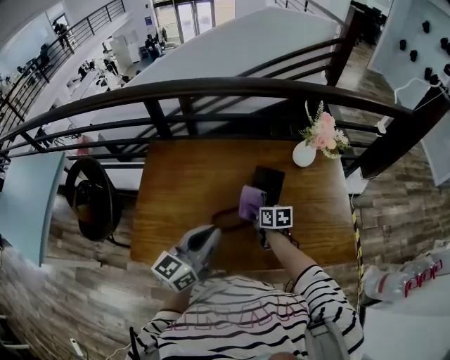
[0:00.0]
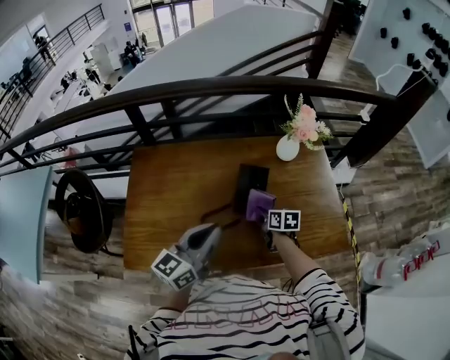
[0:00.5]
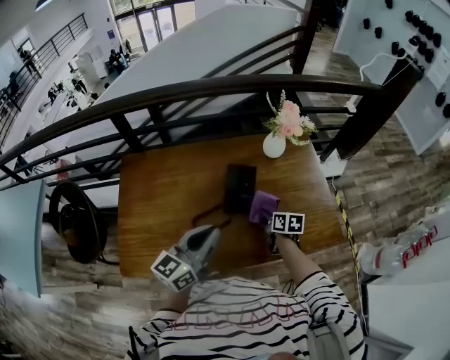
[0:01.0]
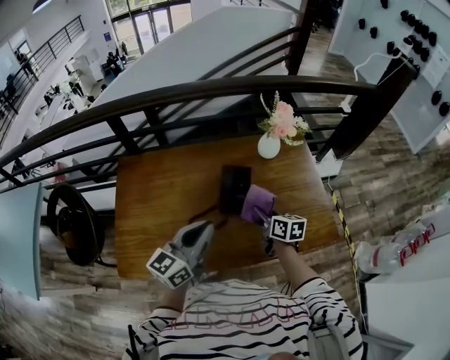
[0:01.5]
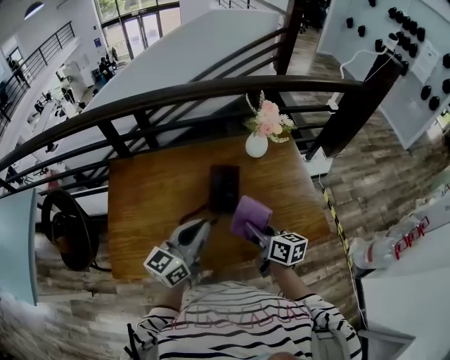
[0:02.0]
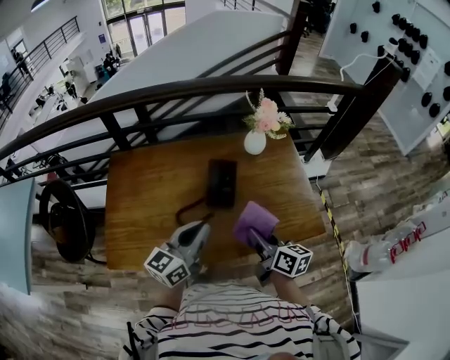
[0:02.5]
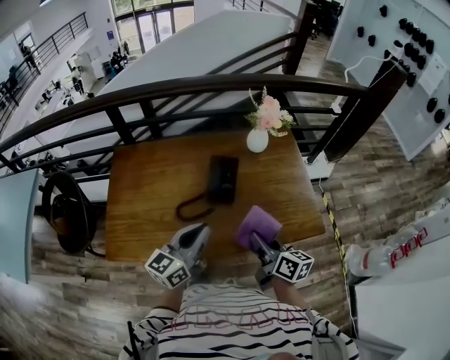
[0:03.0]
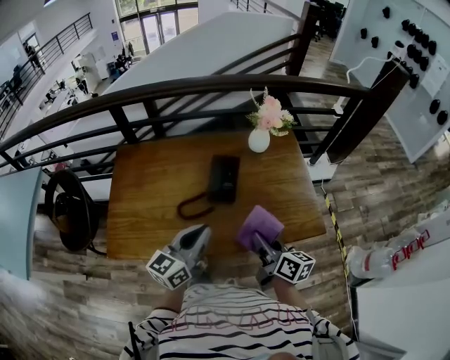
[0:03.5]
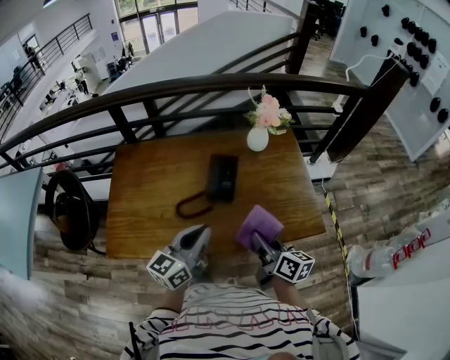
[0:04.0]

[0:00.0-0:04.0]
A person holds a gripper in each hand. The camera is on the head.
0:00.0 to 0:02.0: The left gripper moves to the right, some 10 cm; the right gripper goes some 20 cm to the right, upward and backward, and rotates some 20 degrees.
0:02.0 to 0:04.0: The right gripper shifts about 10 cm backward and to the right; the left gripper goes about 10 cm backward.

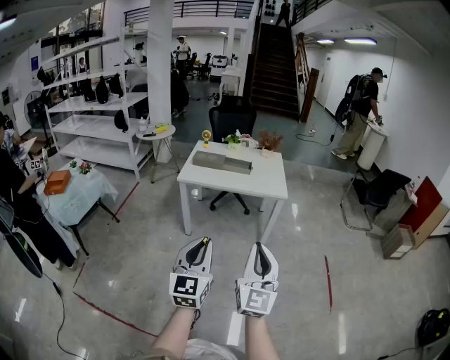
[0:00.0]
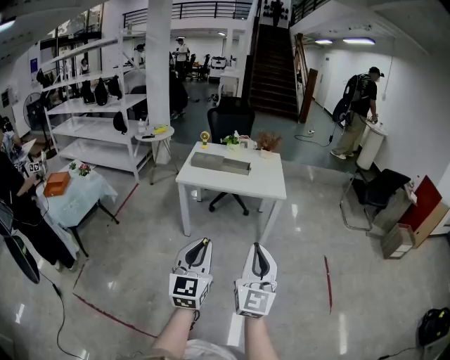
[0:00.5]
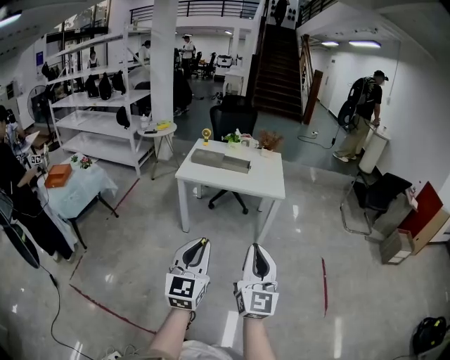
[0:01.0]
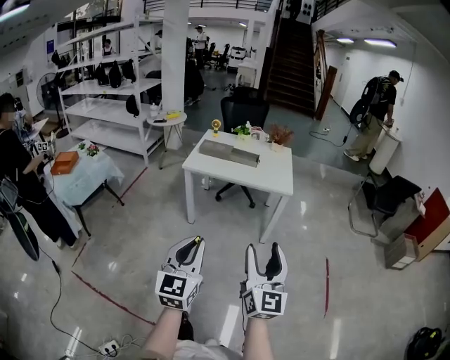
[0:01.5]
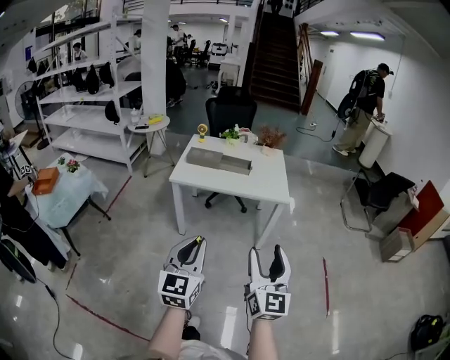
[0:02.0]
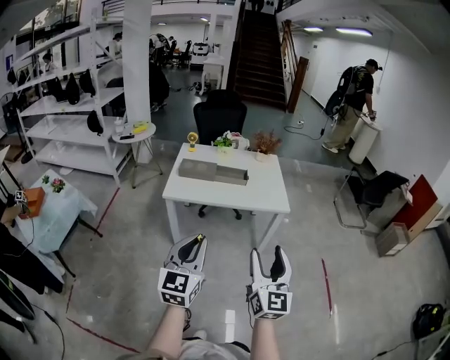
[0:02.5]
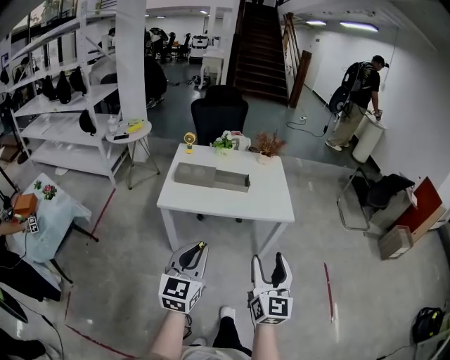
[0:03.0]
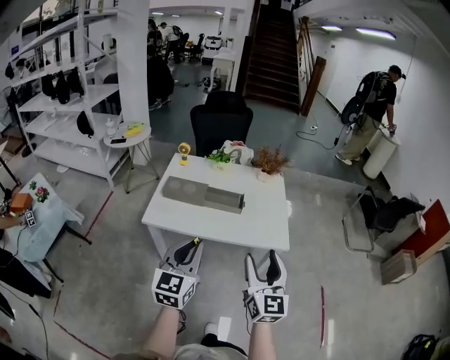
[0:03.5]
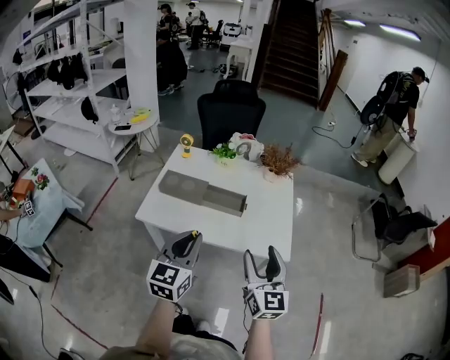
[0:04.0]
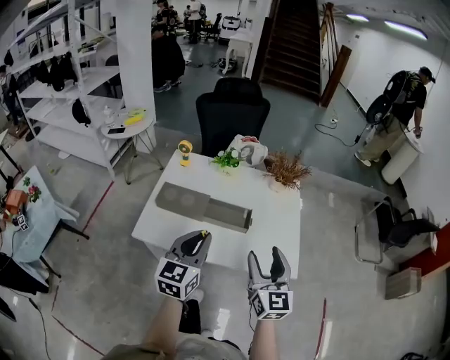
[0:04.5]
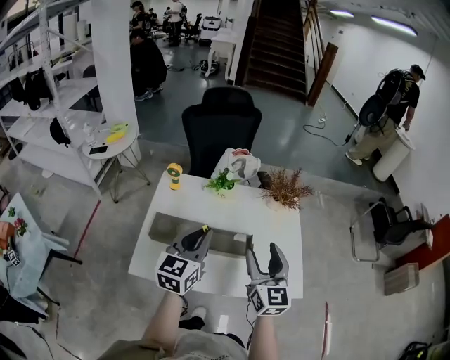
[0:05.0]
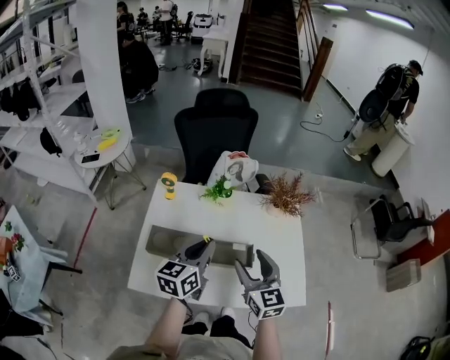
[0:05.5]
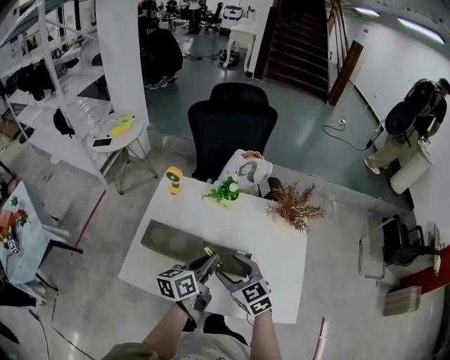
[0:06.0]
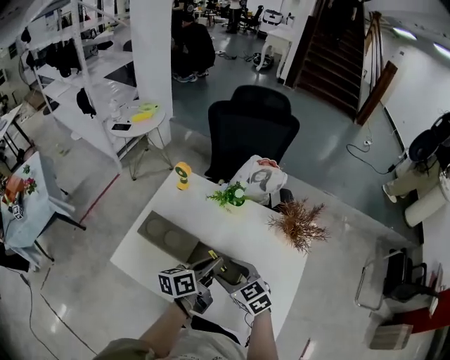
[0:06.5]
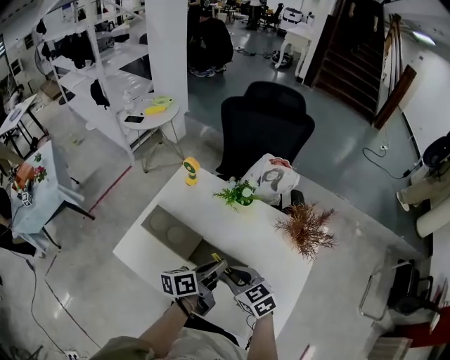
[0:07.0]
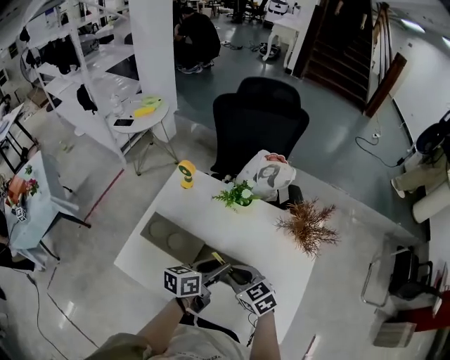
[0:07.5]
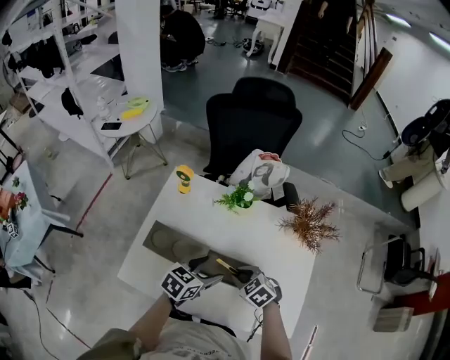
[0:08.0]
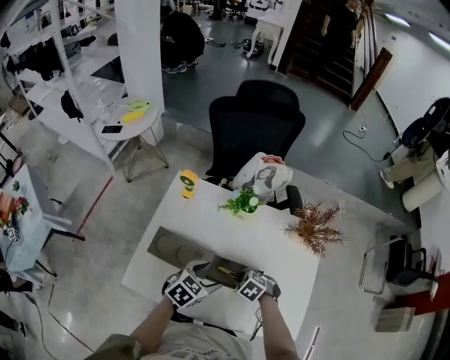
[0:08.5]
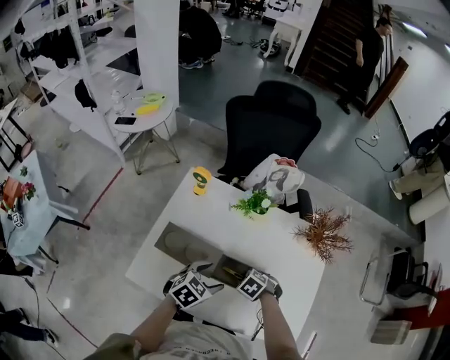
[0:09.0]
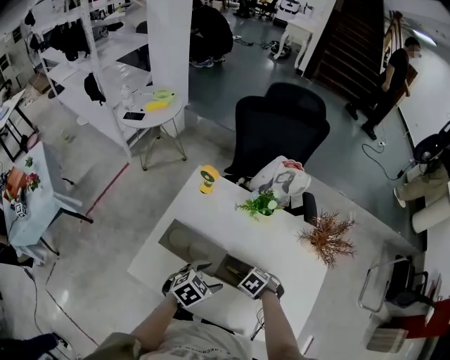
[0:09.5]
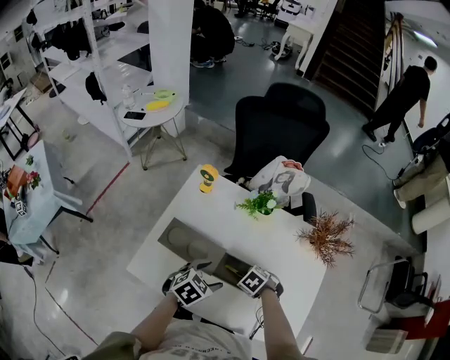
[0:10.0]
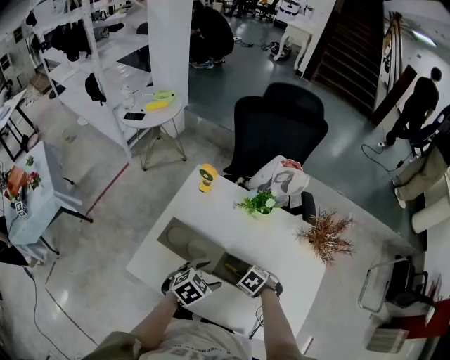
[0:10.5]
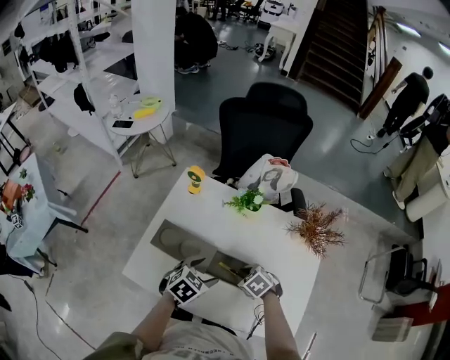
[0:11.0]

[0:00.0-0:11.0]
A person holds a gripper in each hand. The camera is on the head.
0:00.0 to 0:02.0: The two grippers go approximately 10 cm forward. The right gripper opens up.
0:02.0 to 0:03.5: The two grippers go roughly 35 cm forward.
0:03.5 to 0:05.5: Both grippers travel together forward, some 40 cm. The left gripper swivels approximately 30 degrees, while the right gripper changes its angle by about 20 degrees.
0:05.5 to 0:07.5: The two grippers go some 15 cm downward. The right gripper turns by roughly 50 degrees, and closes its fingers. Meanwhile the left gripper turns by about 30 degrees.
0:07.5 to 0:09.0: The right gripper travels downward by some 15 cm, and points its fingers some 40 degrees further downward, while the left gripper changes place by some 10 cm, rolls clockwise, seen from behind, by some 40 degrees, and opens.
0:09.0 to 0:11.0: There are only small adjustments of the grippers.

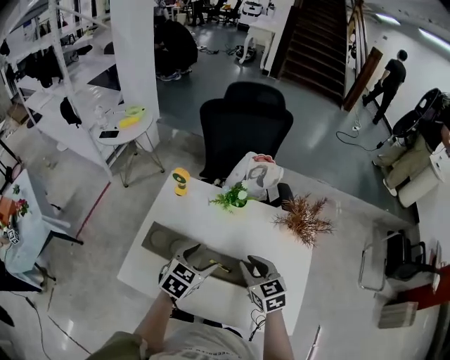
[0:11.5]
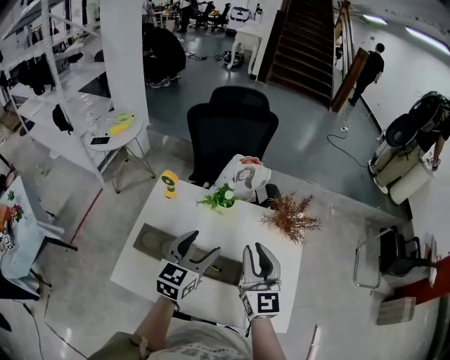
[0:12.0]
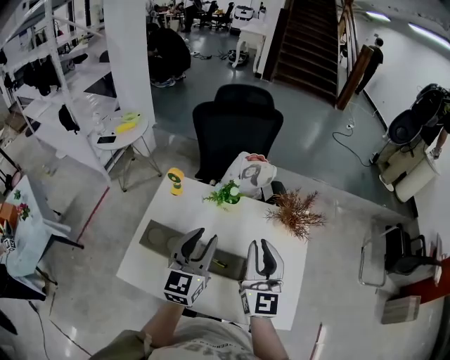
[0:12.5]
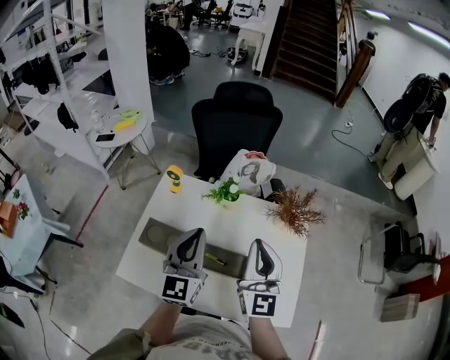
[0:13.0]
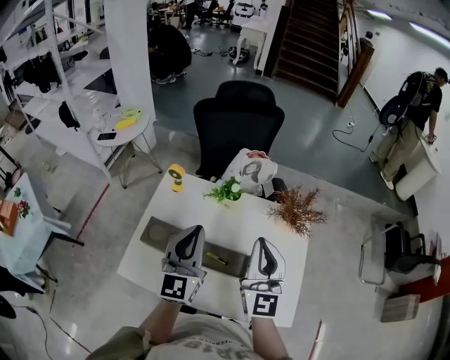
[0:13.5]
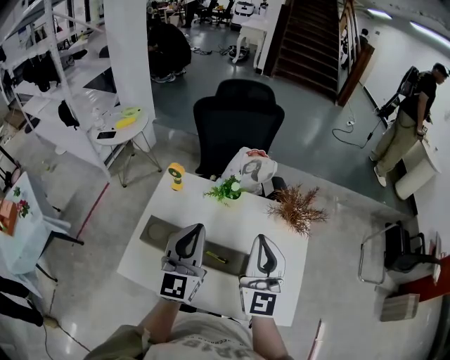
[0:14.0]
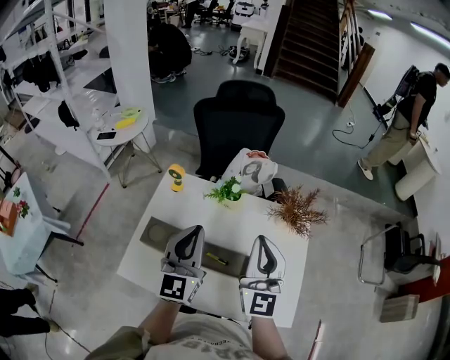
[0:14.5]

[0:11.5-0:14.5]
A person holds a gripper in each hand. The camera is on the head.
0:11.5 to 0:13.0: The two grippers go about 20 cm upward. The right gripper points its fingers approximately 40 degrees further upward, while the left gripper tips its fingers upward by approximately 40 degrees, and closes.
0:13.0 to 0:14.5: The grippers make only small movements.

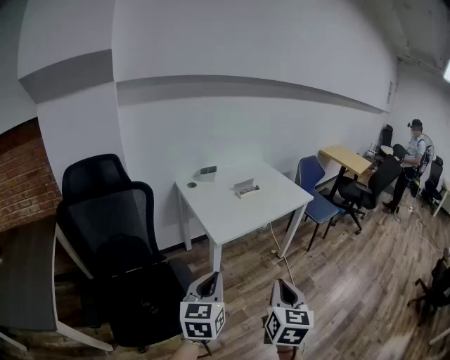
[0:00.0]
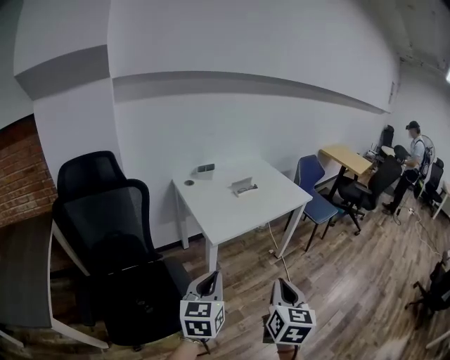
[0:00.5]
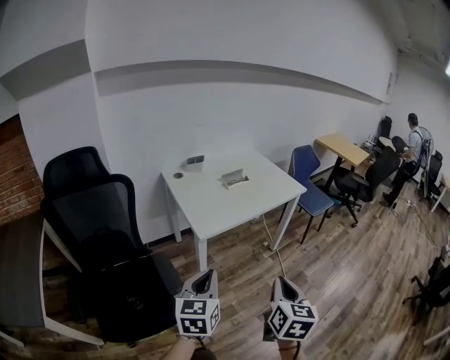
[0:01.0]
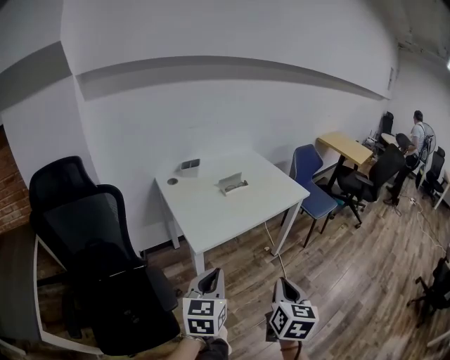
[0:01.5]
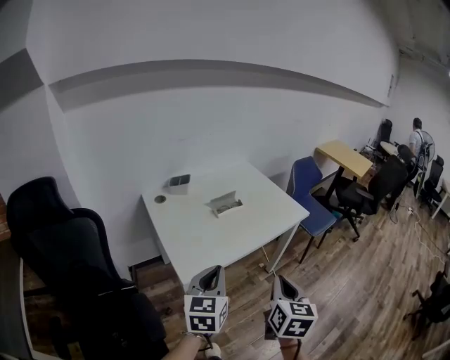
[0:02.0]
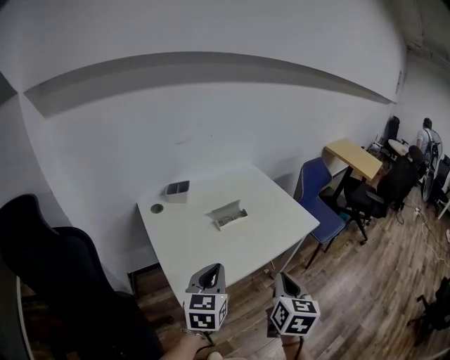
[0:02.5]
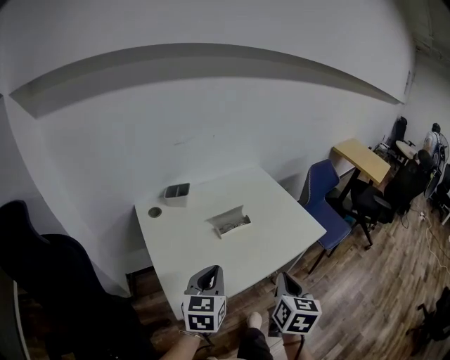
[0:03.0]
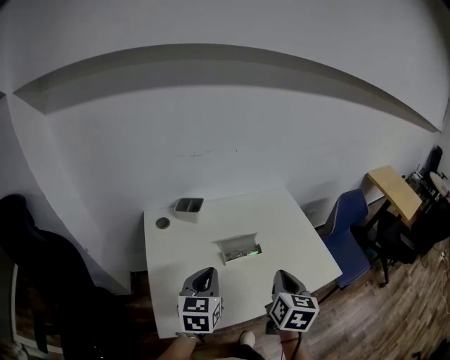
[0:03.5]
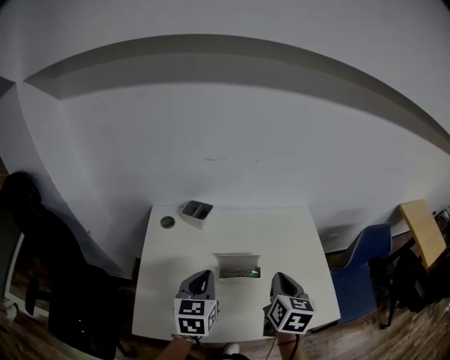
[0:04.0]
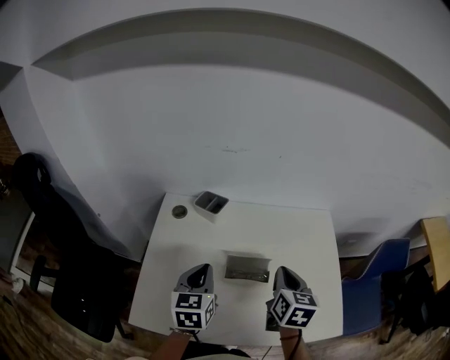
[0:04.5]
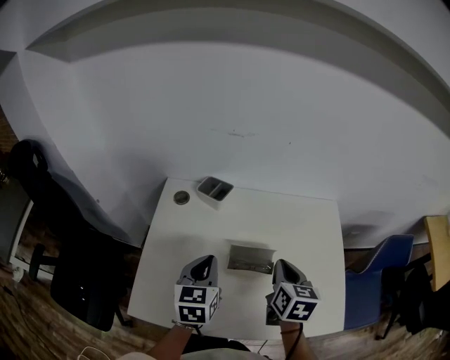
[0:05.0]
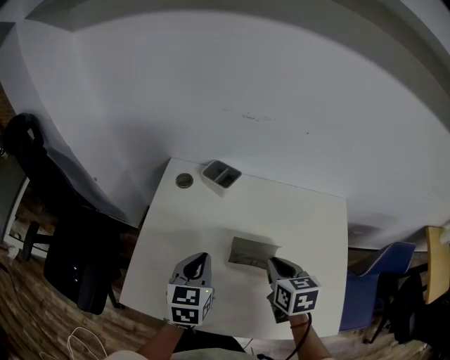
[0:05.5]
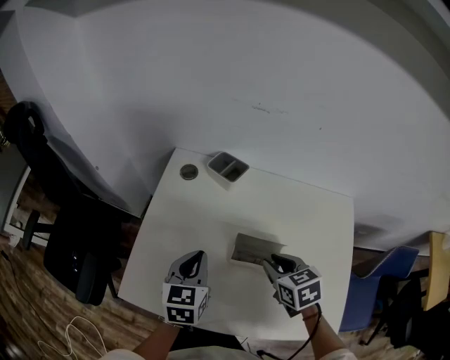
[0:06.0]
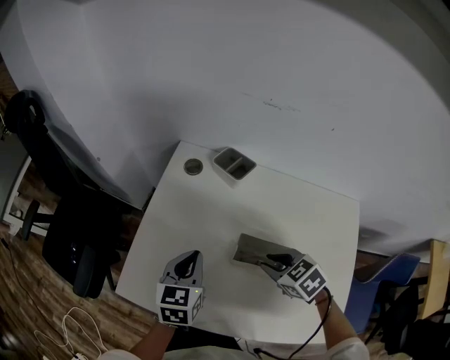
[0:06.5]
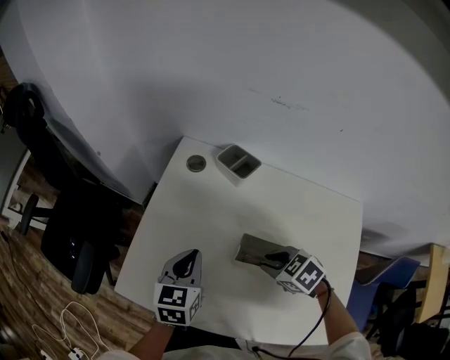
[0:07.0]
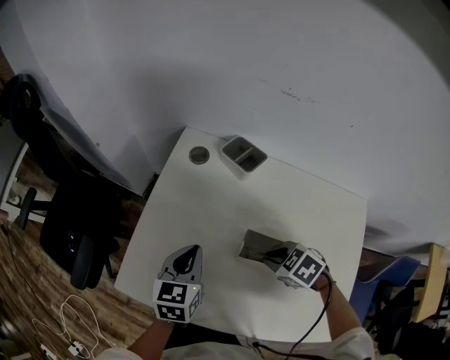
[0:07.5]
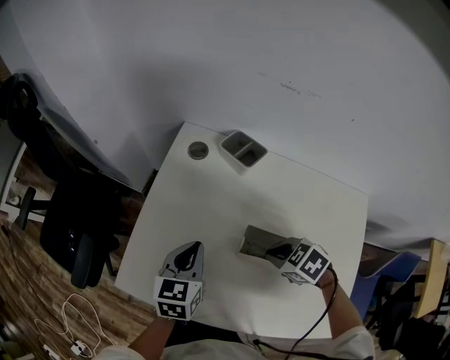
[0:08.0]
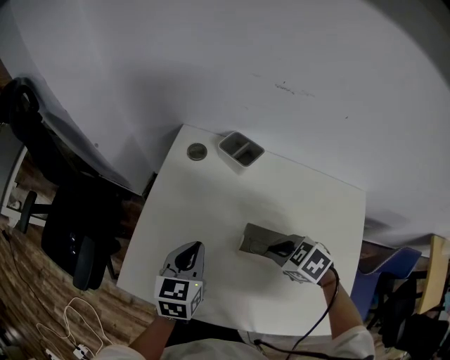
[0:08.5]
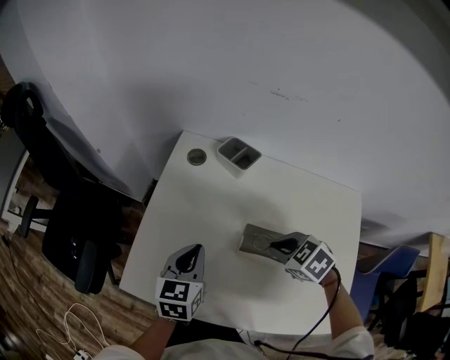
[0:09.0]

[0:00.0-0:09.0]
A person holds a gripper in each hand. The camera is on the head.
0:00.0 to 0:02.0: The two grippers go approximately 25 cm forward.
0:02.0 to 0:04.5: The left gripper shifts by roughly 35 cm, and turns by some 40 degrees. The right gripper changes place by approximately 50 cm, and changes its angle by about 40 degrees.
0:04.5 to 0:07.0: The right gripper shifts roughly 15 cm downward, and tips its fingers downward by roughly 30 degrees; the left gripper is displaced downward by about 5 cm.
0:07.0 to 0:09.0: The grippers move only a little.
